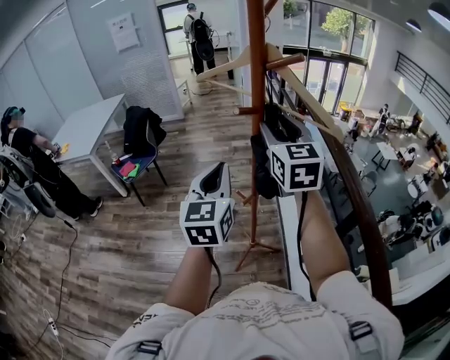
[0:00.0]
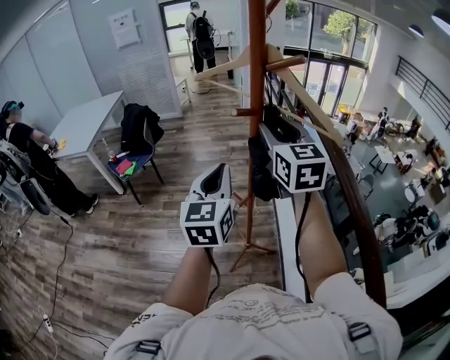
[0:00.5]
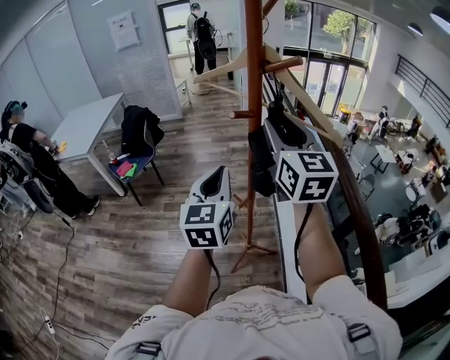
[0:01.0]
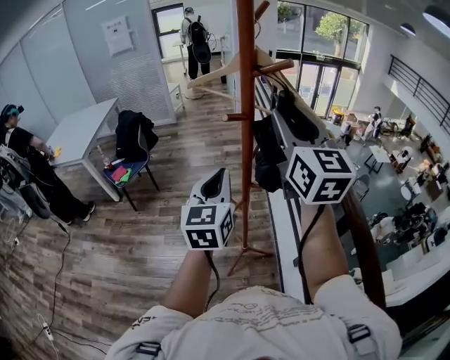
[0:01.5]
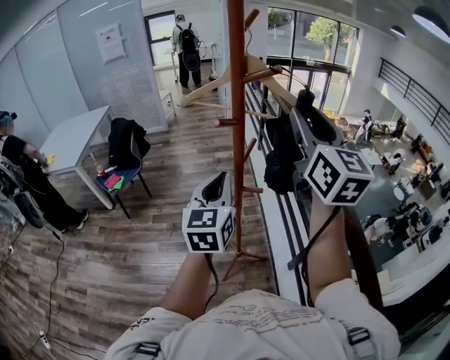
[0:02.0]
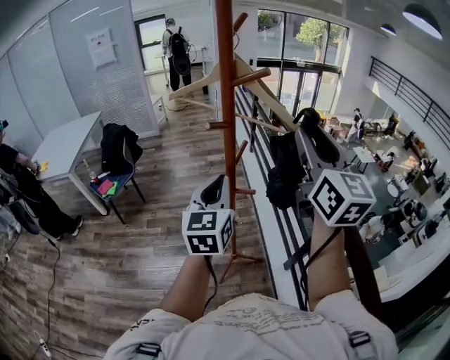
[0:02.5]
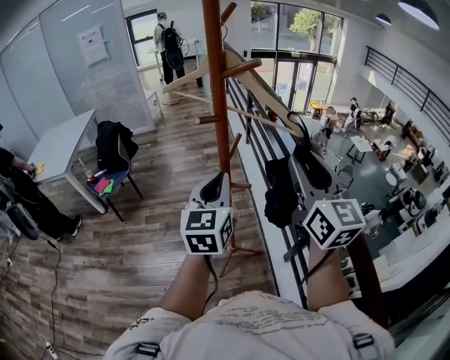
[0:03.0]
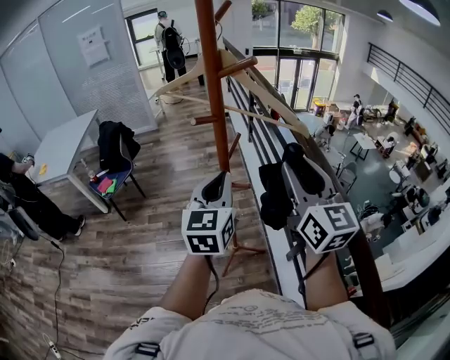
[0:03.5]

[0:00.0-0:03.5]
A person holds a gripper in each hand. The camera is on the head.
0:00.0 to 0:02.0: The right gripper heads upward, to the right and backward, covering roughly 15 cm.
0:02.0 to 0:03.5: The right gripper travels downward and backward by approximately 15 cm.

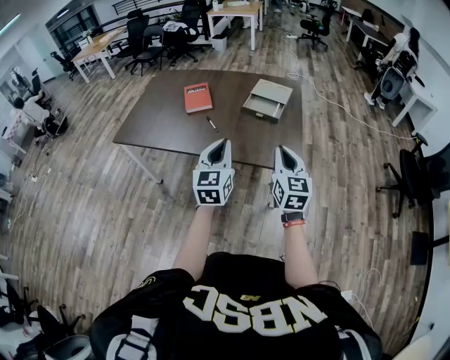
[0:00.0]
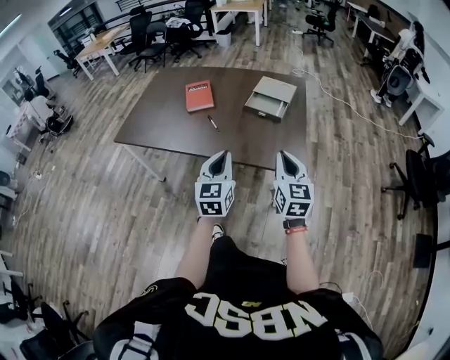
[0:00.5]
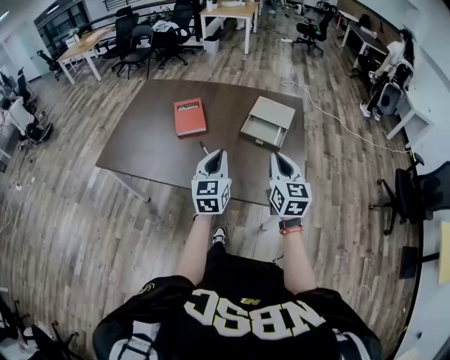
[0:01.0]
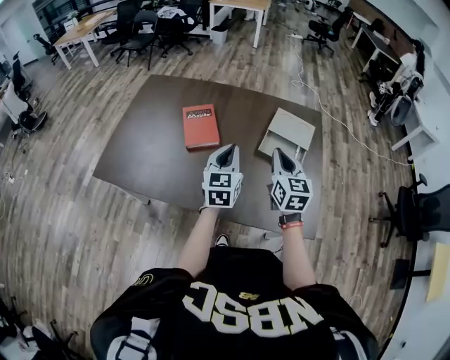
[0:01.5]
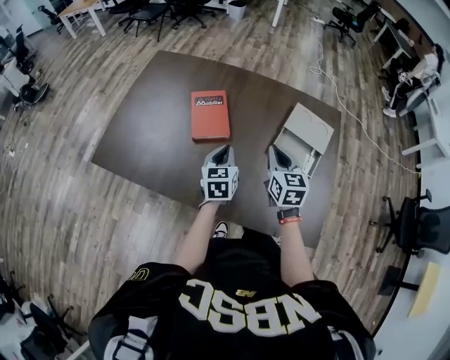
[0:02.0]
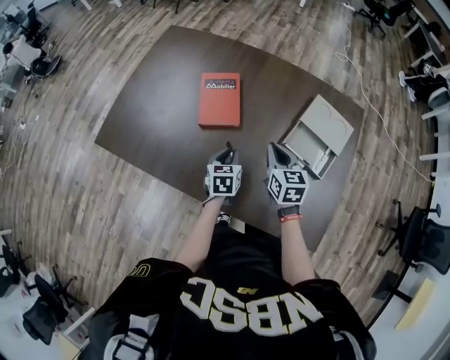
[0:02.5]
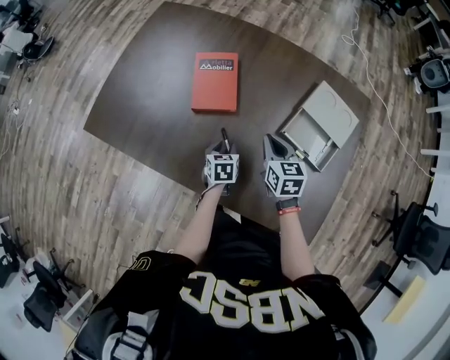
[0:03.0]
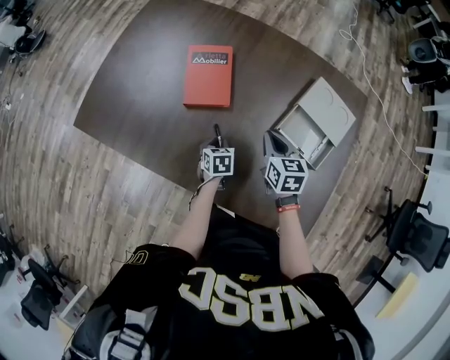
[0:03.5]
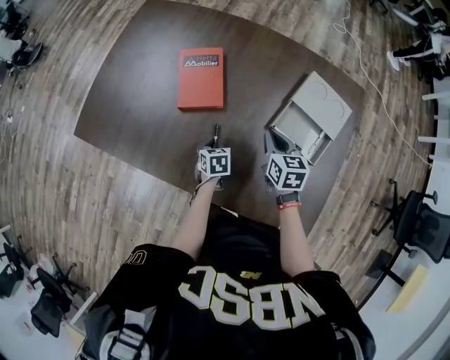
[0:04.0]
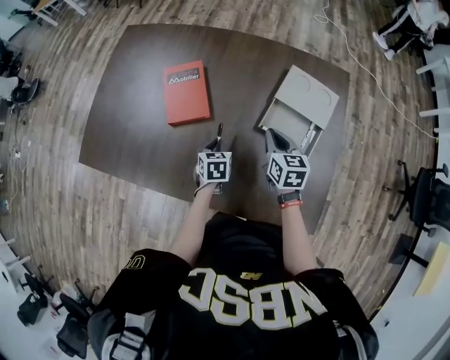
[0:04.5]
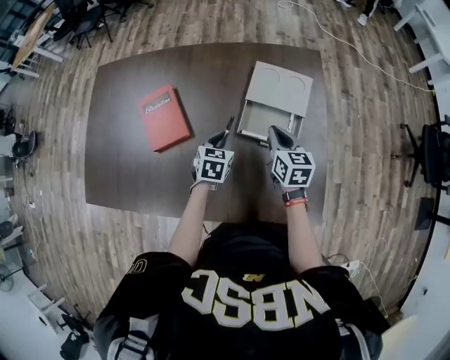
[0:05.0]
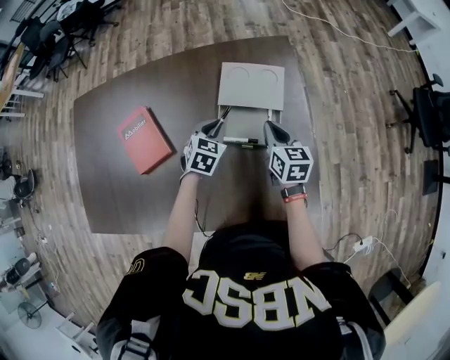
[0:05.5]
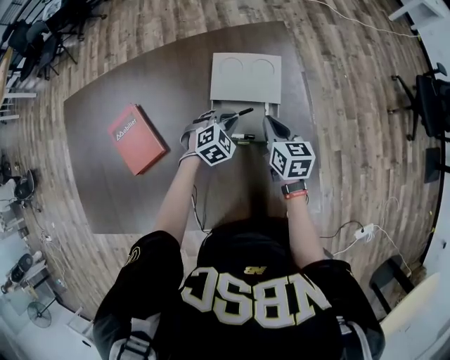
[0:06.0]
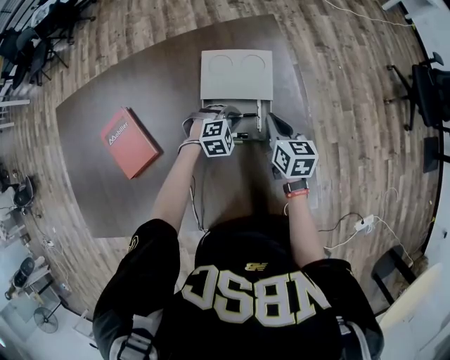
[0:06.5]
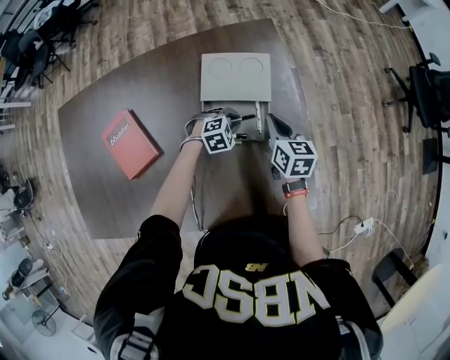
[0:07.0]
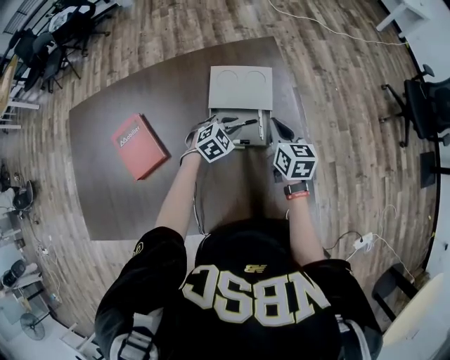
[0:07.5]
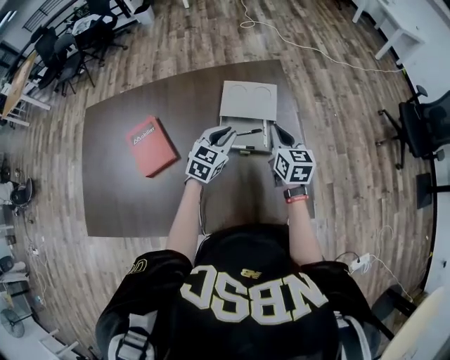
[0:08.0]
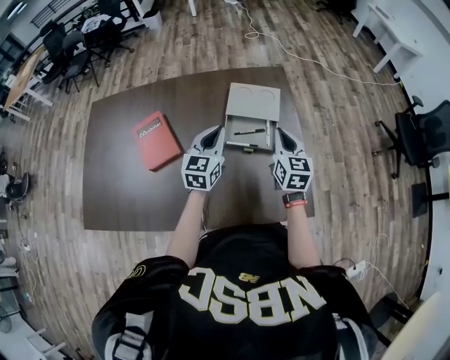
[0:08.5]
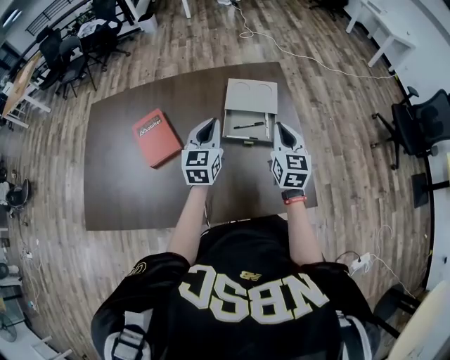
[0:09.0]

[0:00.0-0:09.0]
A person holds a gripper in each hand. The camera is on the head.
0:00.0 to 0:02.0: Both grippers are carried forward, roughly 40 cm. The left gripper heads downward, covering approximately 15 cm, and changes its angle by roughly 30 degrees.
0:02.0 to 0:04.5: The right gripper heads downward and to the right, covering some 10 cm. Meanwhile the left gripper travels downward by roughly 15 cm, changes its angle by about 30 degrees, and opens and closes again.
0:04.5 to 0:07.0: The left gripper ends up about 30 cm from where it was, and rotates around the line of its fingers by about 90 degrees, clockwise from behind, while the right gripper changes place by roughly 20 cm, and swivels about 30 degrees.
0:07.0 to 0:09.0: The left gripper goes about 35 cm upward and to the left, and angles its fingers upward, by approximately 50 degrees. Meanwhile the right gripper shifts some 20 cm upward and backward, and swivels approximately 30 degrees.

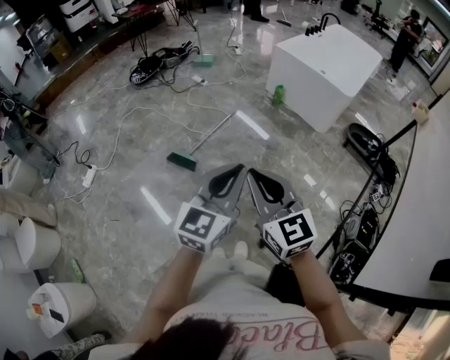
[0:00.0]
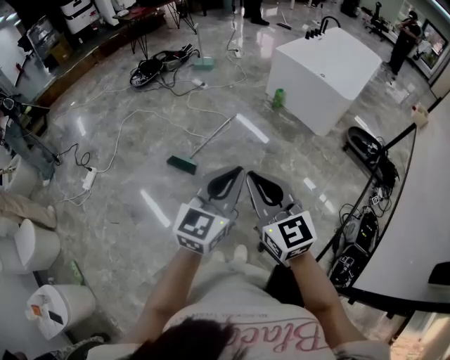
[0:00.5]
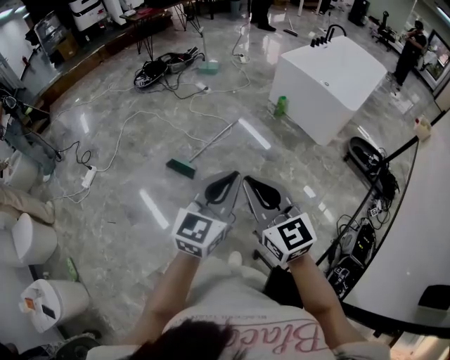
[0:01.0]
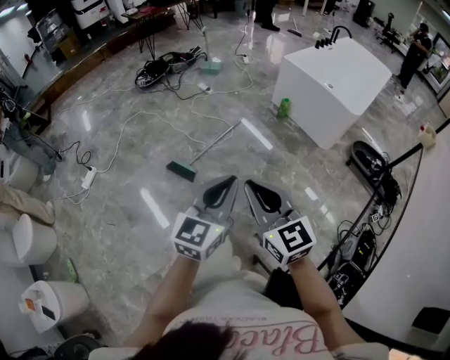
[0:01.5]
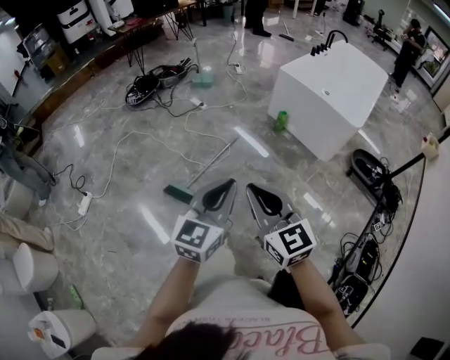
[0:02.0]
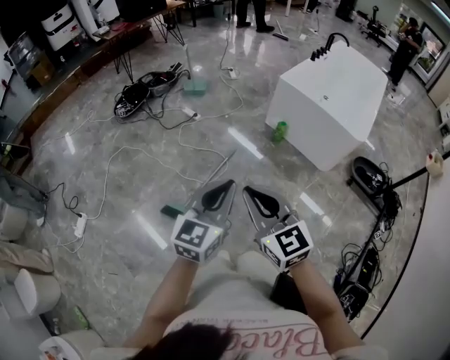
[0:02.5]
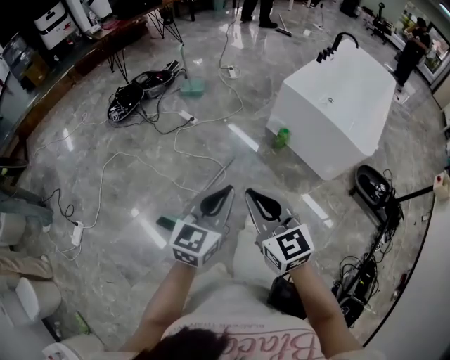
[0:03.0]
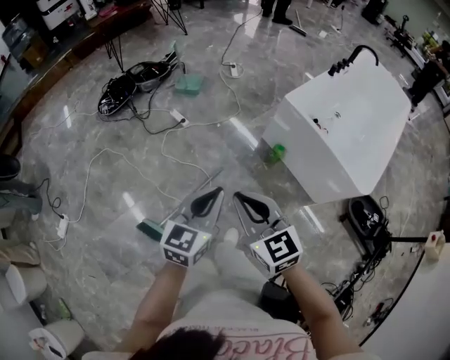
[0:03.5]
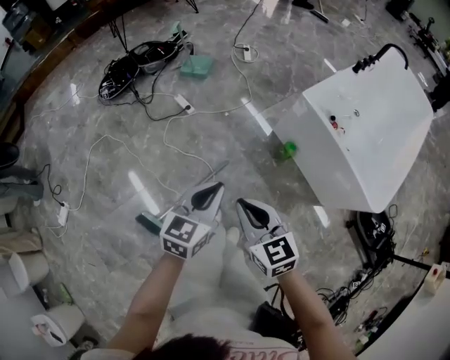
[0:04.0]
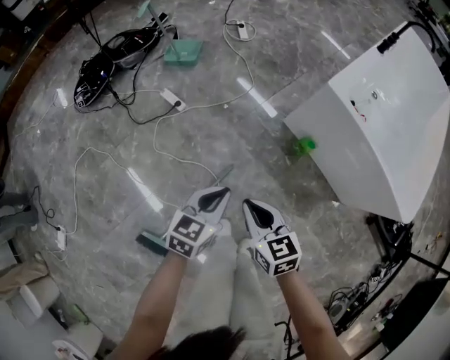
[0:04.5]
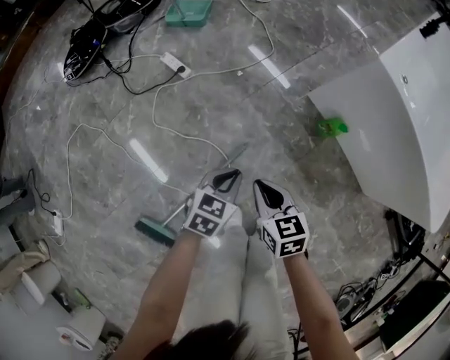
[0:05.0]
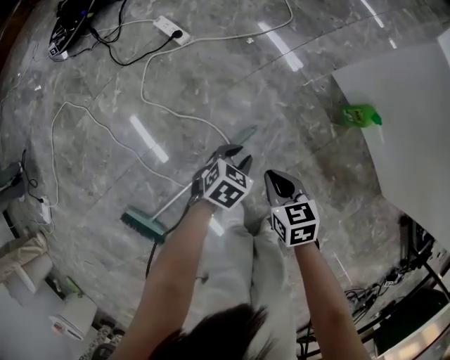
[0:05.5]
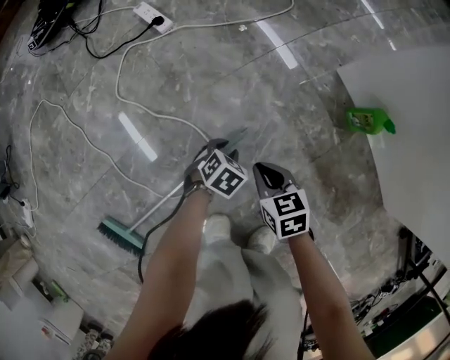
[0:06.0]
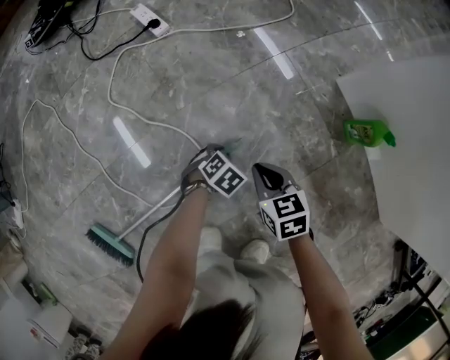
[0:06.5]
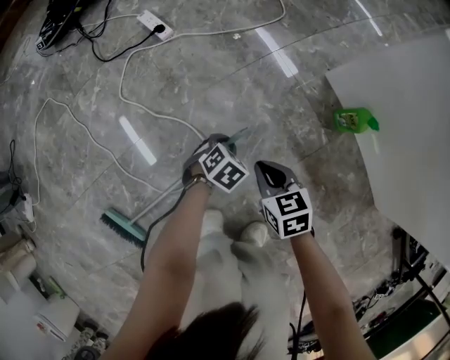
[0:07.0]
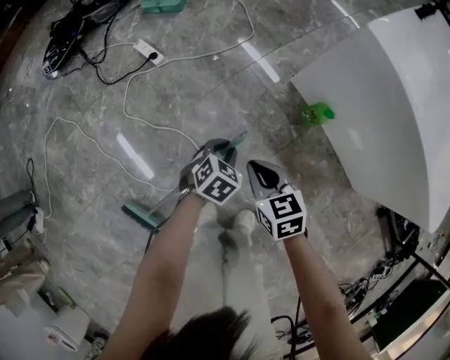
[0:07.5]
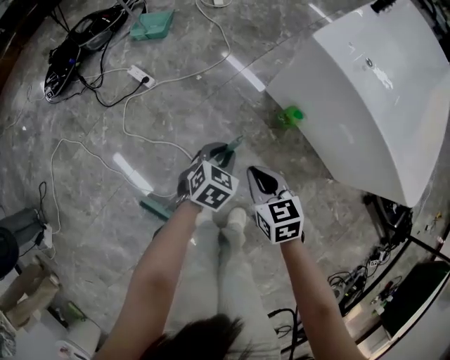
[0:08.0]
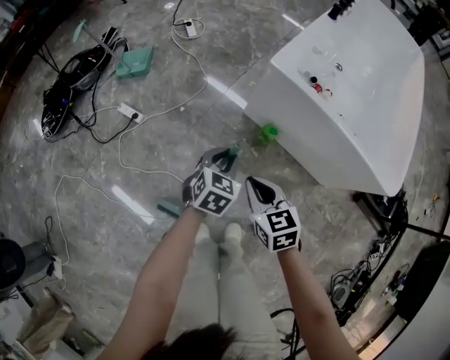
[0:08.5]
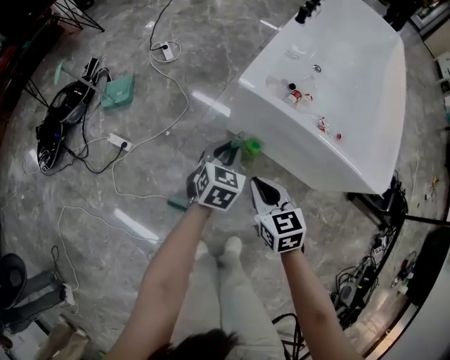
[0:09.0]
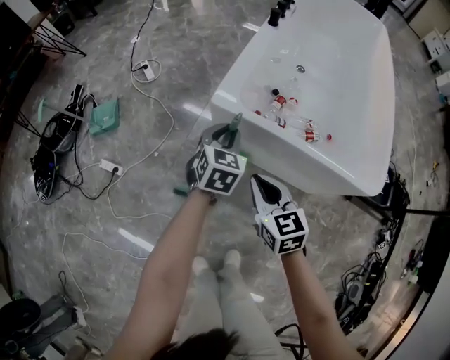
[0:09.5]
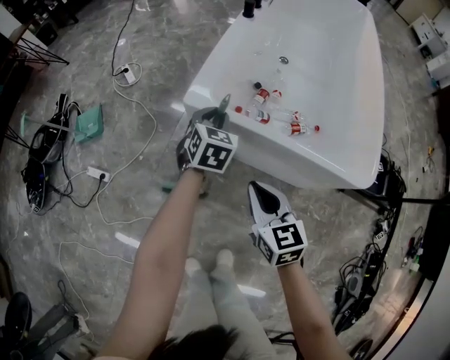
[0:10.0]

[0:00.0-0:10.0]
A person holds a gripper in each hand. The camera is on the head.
0:00.0 to 0:02.0: The grippers both shift forward by some 15 cm.
0:02.0 to 0:04.0: Both grippers move forward, about 40 cm. The right gripper rotates roughly 20 degrees.
0:04.0 to 0:06.0: Both grippers travel together downward, about 60 cm. The left gripper points its fingers some 50 degrees further downward, and opens its fingers. The right gripper rotates some 30 degrees.
0:06.0 to 0:08.0: The grippers both shift upward by approximately 30 cm. The left gripper swivels roughly 20 degrees.
0:08.0 to 0:10.0: The left gripper goes roughly 35 cm forward, to the right and upward. The right gripper heads to the right, upward and forward, covering some 25 cm, and turns by approximately 30 degrees.

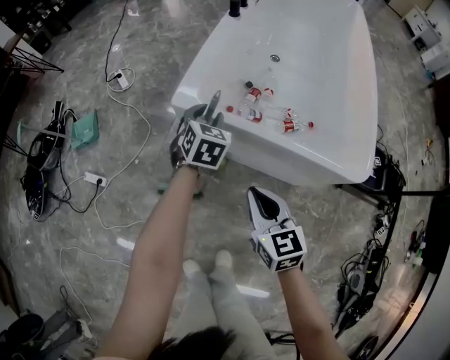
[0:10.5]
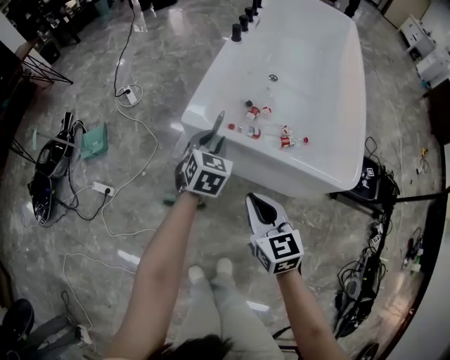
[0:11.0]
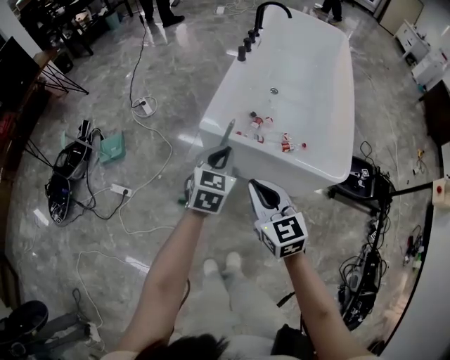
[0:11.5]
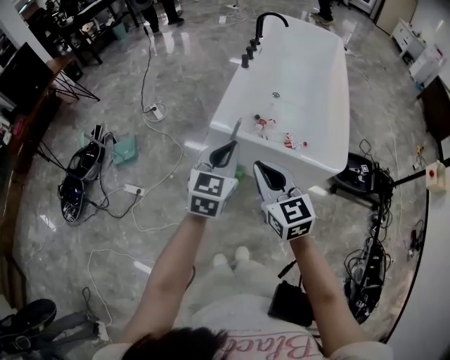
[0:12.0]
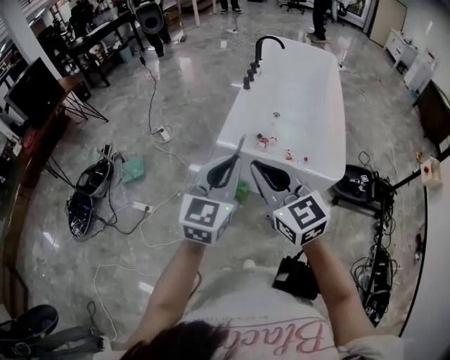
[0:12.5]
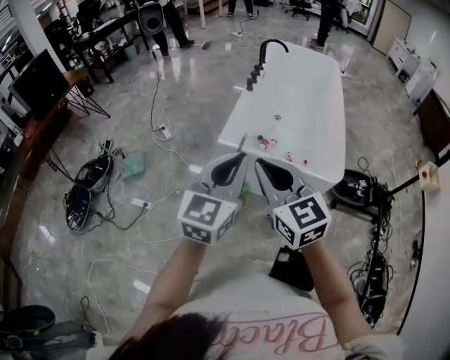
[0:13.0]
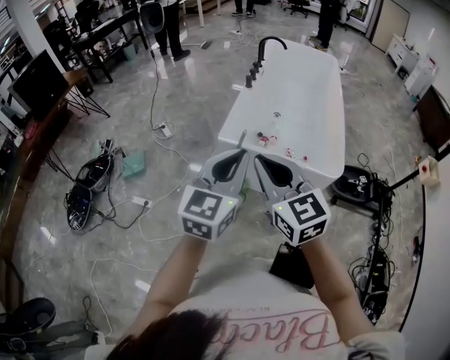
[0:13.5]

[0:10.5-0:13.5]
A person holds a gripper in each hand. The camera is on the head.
0:10.5 to 0:12.0: The left gripper heads upward and backward, covering approximately 35 cm, rotates about 30 degrees, and closes. Meanwhile the right gripper goes about 25 cm upward.
0:12.0 to 0:13.5: The left gripper shifts approximately 15 cm upward and backward. Meanwhile the right gripper is displaced upward by about 10 cm.
